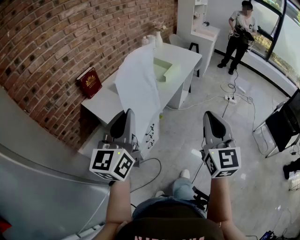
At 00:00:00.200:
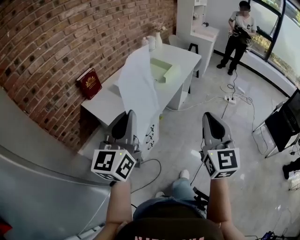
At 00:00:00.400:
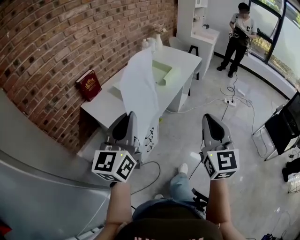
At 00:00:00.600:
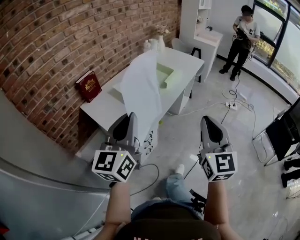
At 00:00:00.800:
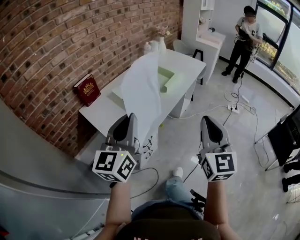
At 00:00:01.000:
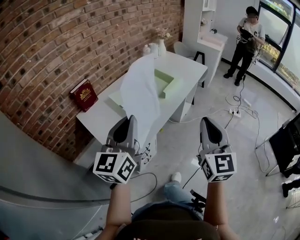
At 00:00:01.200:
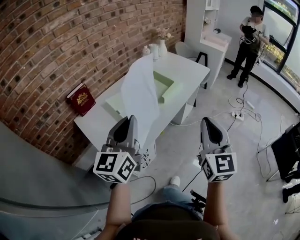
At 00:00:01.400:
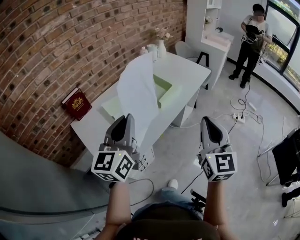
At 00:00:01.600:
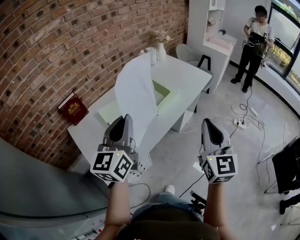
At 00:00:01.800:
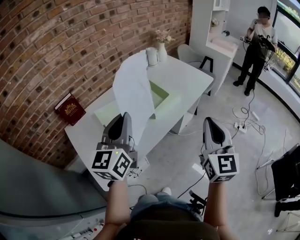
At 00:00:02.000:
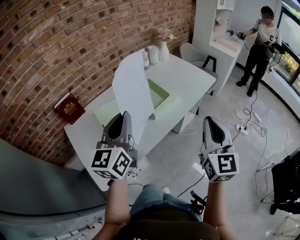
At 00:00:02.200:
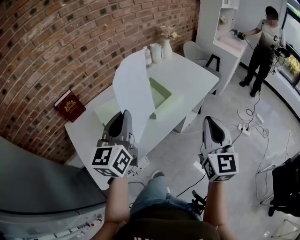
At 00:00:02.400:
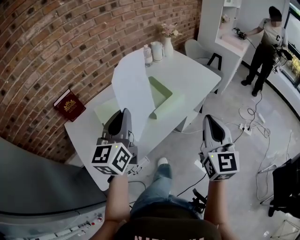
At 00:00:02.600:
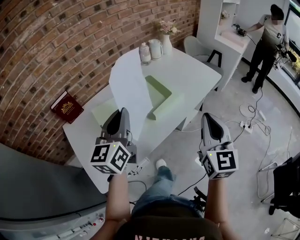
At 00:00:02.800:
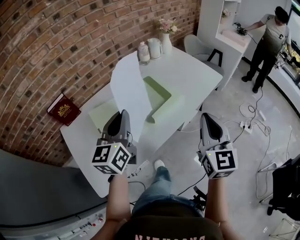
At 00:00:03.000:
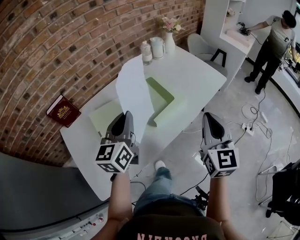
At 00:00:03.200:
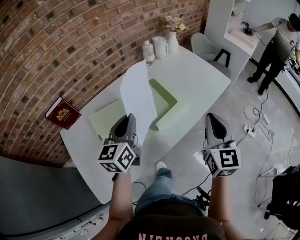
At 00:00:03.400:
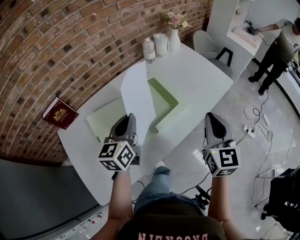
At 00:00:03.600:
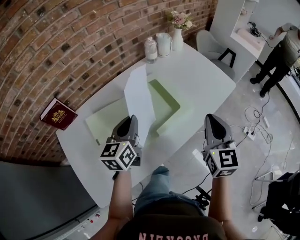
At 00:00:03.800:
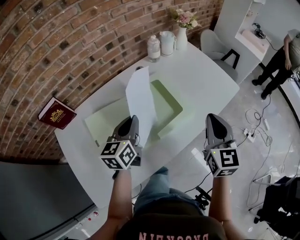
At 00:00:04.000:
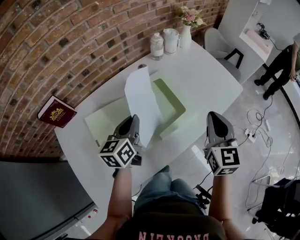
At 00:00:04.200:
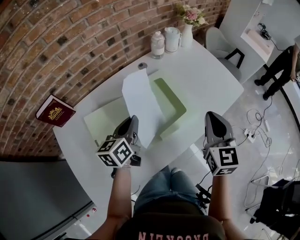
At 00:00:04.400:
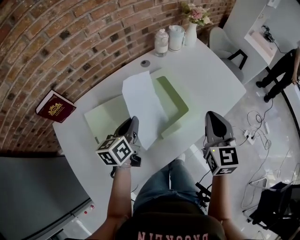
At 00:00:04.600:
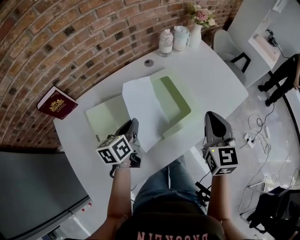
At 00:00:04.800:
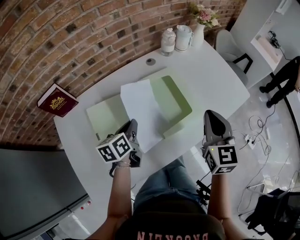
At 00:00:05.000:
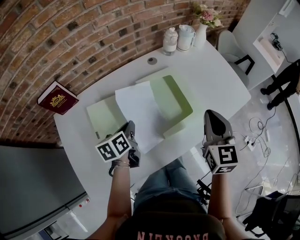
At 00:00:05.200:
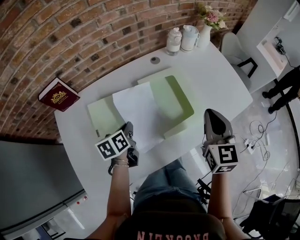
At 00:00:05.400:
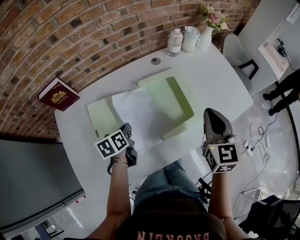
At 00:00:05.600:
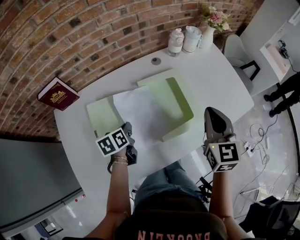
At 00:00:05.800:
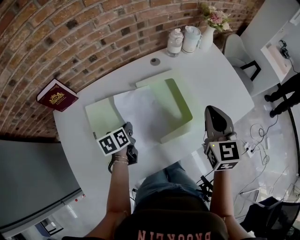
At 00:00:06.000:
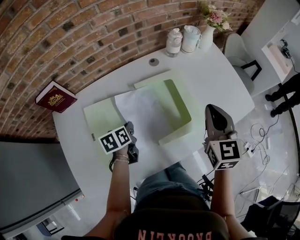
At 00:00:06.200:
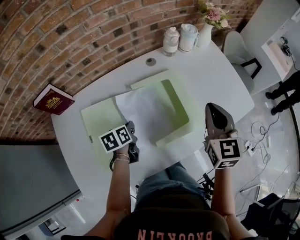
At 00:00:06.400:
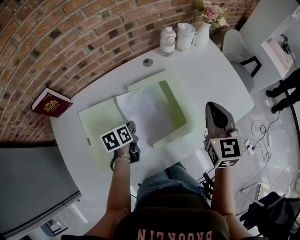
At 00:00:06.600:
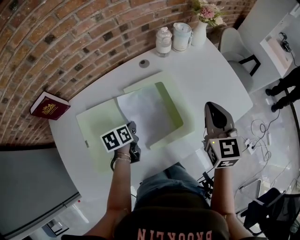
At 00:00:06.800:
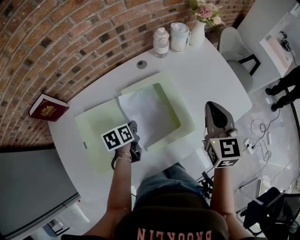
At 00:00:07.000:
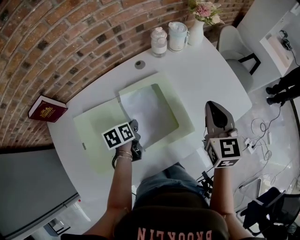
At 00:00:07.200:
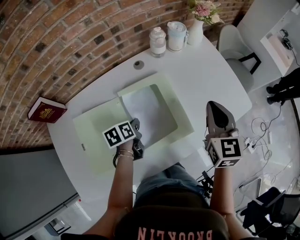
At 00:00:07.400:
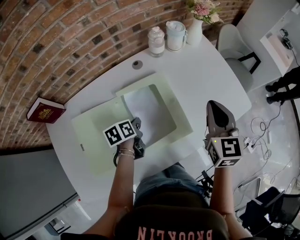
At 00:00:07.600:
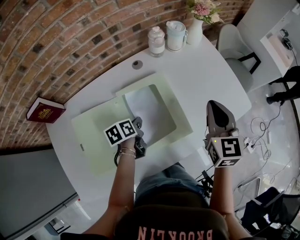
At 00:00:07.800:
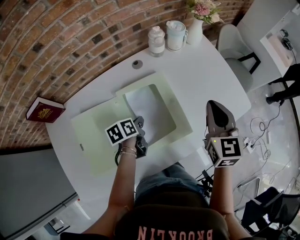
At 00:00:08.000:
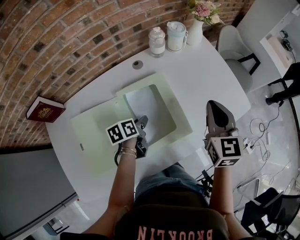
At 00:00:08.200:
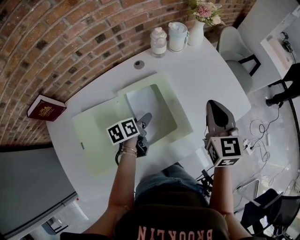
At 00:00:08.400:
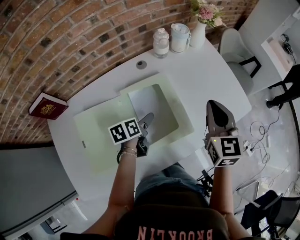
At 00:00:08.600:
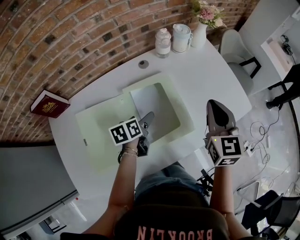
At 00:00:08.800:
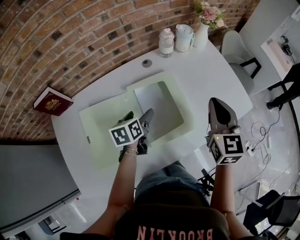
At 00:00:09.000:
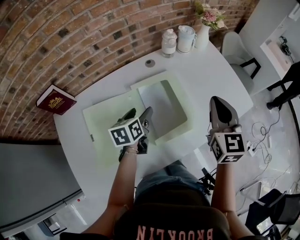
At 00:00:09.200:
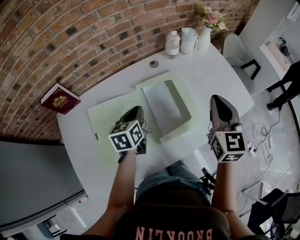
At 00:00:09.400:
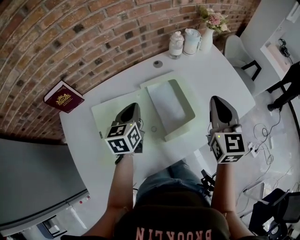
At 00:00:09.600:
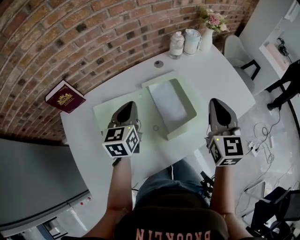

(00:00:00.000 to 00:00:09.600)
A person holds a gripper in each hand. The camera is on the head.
00:00:00.000 - 00:00:01.600: The grippers both shift forward by approximately 30 cm.
00:00:01.600 - 00:00:03.200: The right gripper travels forward by approximately 25 cm; the left gripper goes some 25 cm forward and downward.
00:00:03.200 - 00:00:04.800: The left gripper heads downward and forward, covering about 15 cm, and turns by roughly 40 degrees, while the right gripper moves forward, to the left and downward, approximately 15 cm.
00:00:04.800 - 00:00:06.400: The left gripper moves downward, some 10 cm, and changes its angle by about 20 degrees, while the right gripper shifts some 10 cm forward.
00:00:06.400 - 00:00:08.000: The right gripper shifts by approximately 5 cm. The left gripper shifts approximately 10 cm to the right and forward.
00:00:08.000 - 00:00:09.600: The left gripper moves upward and to the left, roughly 20 cm, changes its angle by roughly 50 degrees, and opens, then closes again. The right gripper travels backward, to the left and upward by approximately 15 cm.

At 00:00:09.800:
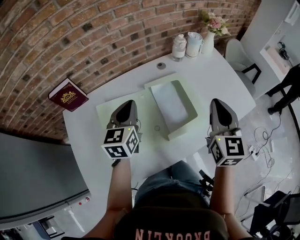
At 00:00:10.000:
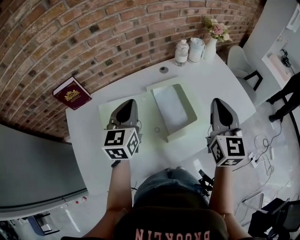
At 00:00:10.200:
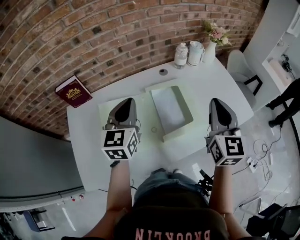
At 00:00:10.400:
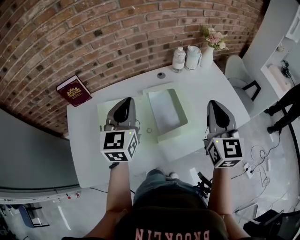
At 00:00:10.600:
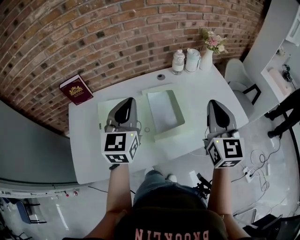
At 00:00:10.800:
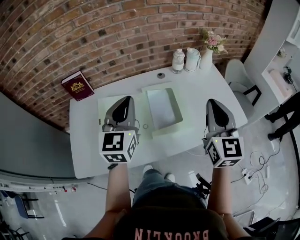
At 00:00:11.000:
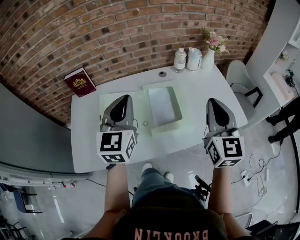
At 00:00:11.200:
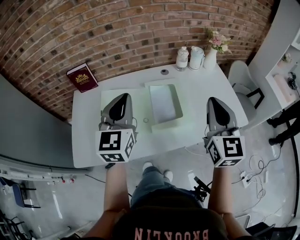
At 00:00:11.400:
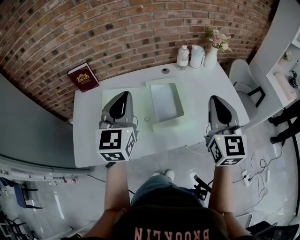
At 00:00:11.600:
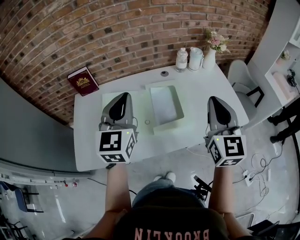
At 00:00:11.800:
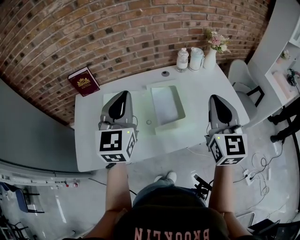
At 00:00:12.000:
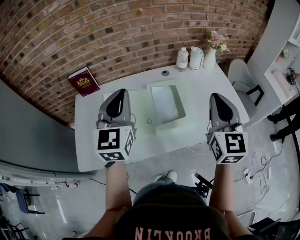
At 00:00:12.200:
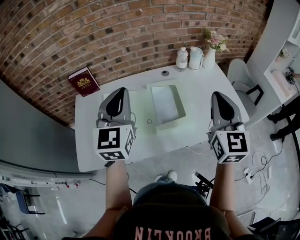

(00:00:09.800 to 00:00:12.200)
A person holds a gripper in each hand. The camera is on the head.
00:00:09.800 - 00:00:11.000: The right gripper heads upward and to the right, covering roughly 10 cm; the left gripper goes some 20 cm upward, backward and to the right, and swivels approximately 20 degrees.
00:00:11.000 - 00:00:12.200: The grippers stay close to where they were, moving slightly.

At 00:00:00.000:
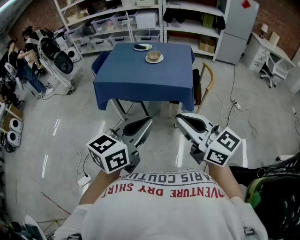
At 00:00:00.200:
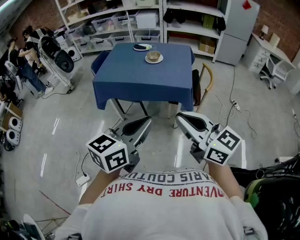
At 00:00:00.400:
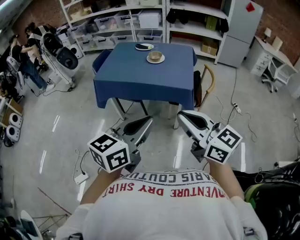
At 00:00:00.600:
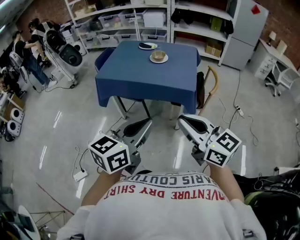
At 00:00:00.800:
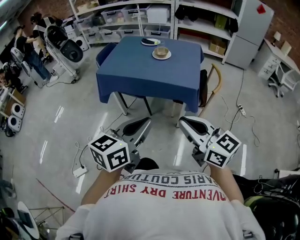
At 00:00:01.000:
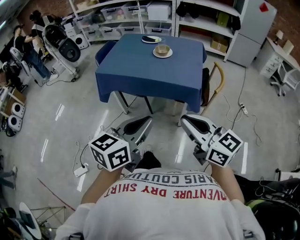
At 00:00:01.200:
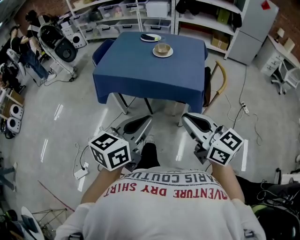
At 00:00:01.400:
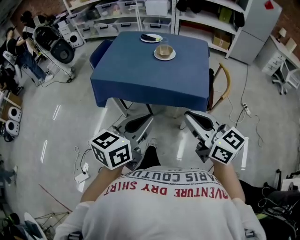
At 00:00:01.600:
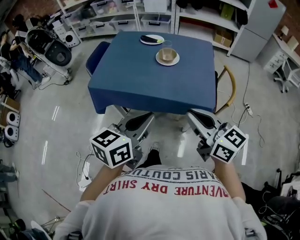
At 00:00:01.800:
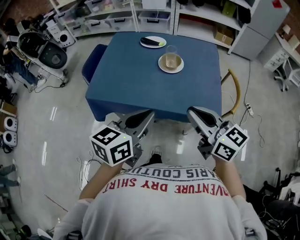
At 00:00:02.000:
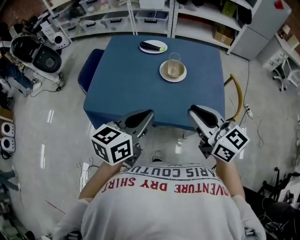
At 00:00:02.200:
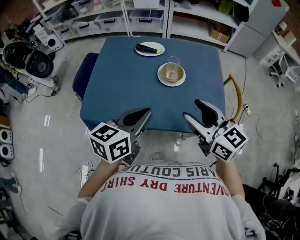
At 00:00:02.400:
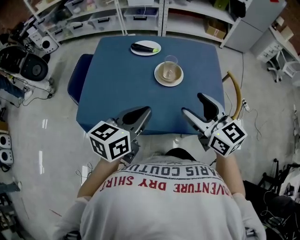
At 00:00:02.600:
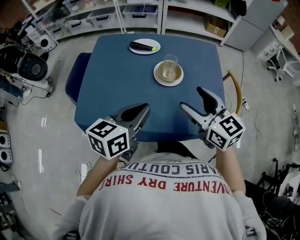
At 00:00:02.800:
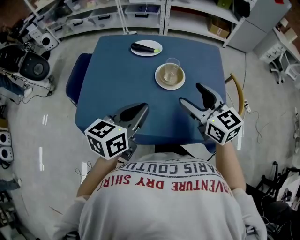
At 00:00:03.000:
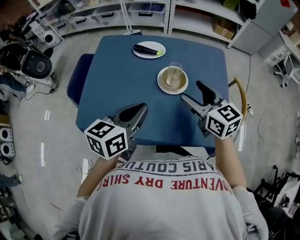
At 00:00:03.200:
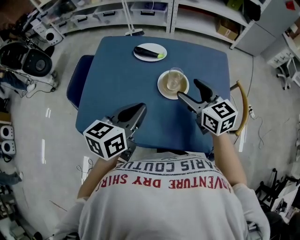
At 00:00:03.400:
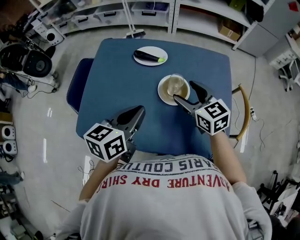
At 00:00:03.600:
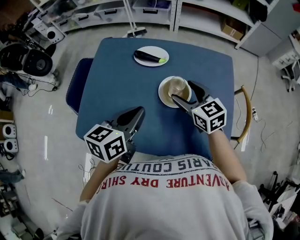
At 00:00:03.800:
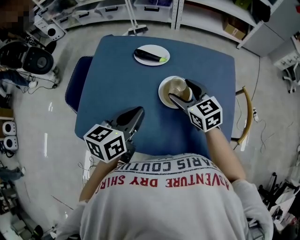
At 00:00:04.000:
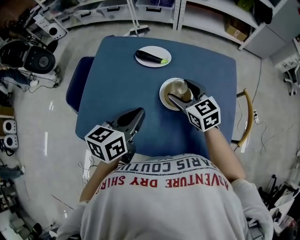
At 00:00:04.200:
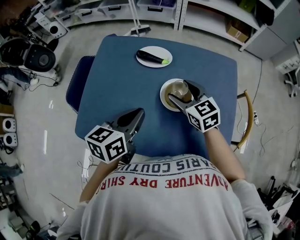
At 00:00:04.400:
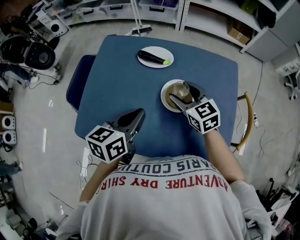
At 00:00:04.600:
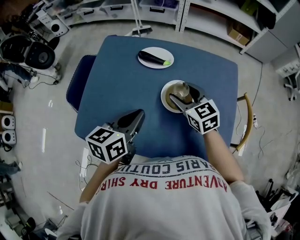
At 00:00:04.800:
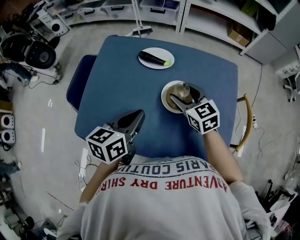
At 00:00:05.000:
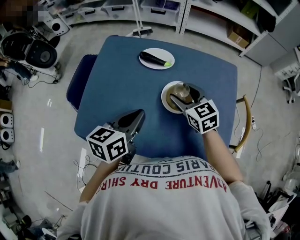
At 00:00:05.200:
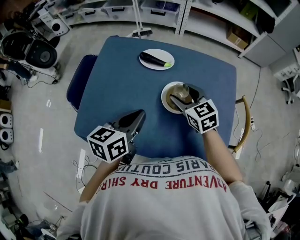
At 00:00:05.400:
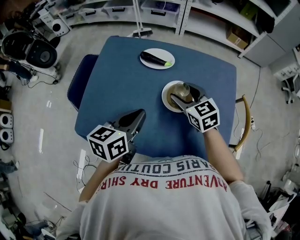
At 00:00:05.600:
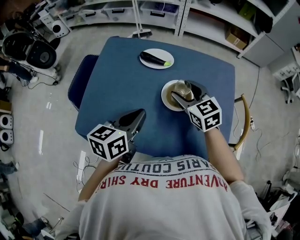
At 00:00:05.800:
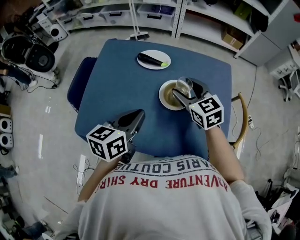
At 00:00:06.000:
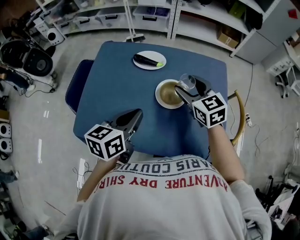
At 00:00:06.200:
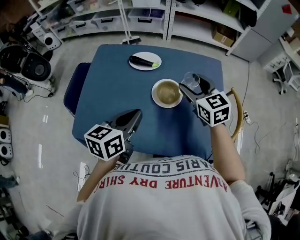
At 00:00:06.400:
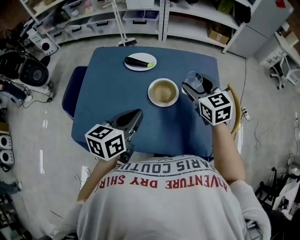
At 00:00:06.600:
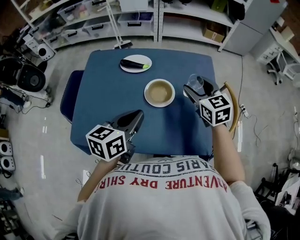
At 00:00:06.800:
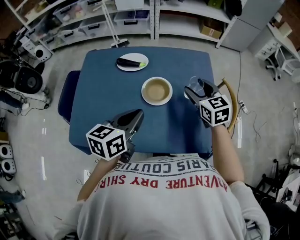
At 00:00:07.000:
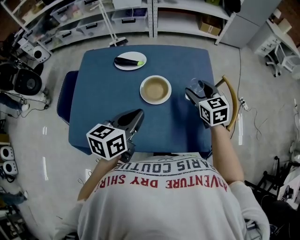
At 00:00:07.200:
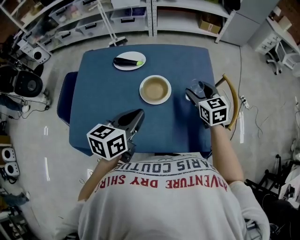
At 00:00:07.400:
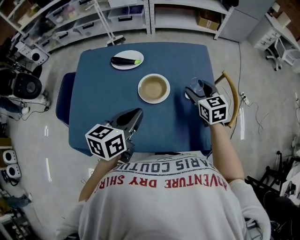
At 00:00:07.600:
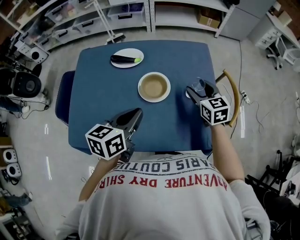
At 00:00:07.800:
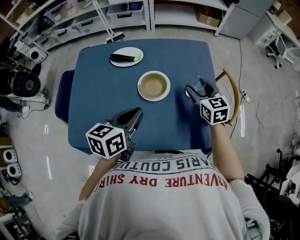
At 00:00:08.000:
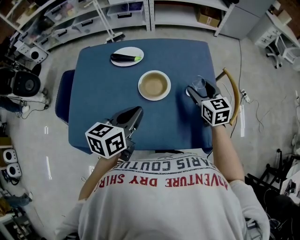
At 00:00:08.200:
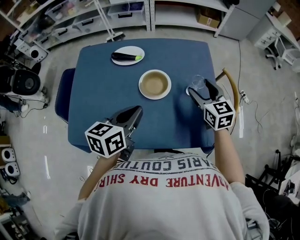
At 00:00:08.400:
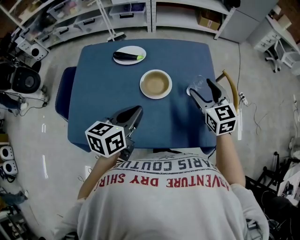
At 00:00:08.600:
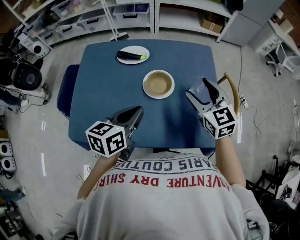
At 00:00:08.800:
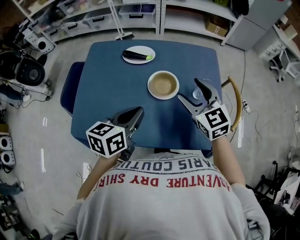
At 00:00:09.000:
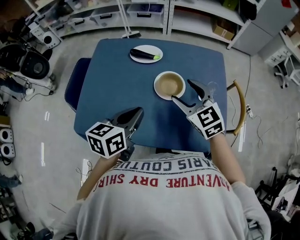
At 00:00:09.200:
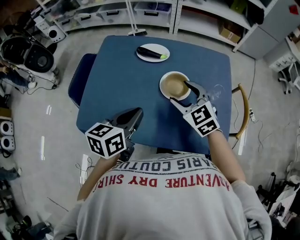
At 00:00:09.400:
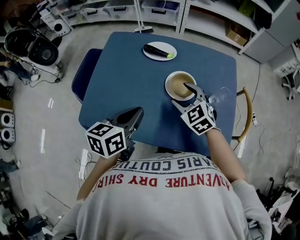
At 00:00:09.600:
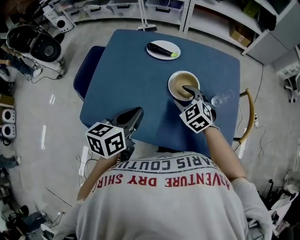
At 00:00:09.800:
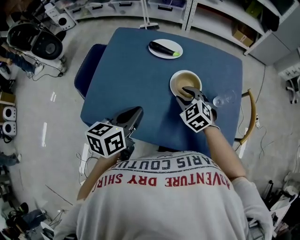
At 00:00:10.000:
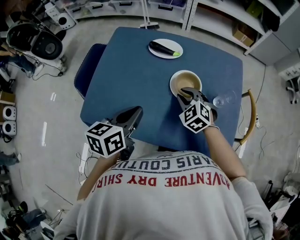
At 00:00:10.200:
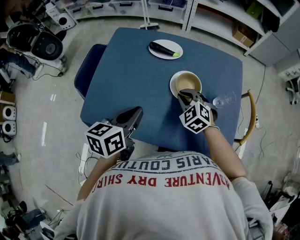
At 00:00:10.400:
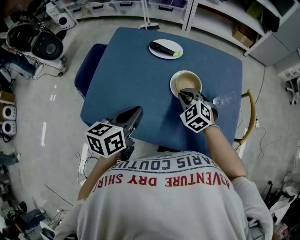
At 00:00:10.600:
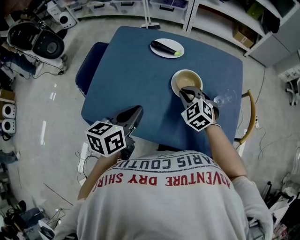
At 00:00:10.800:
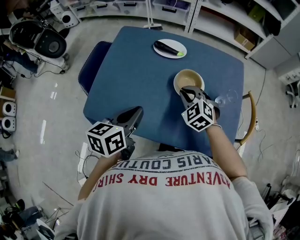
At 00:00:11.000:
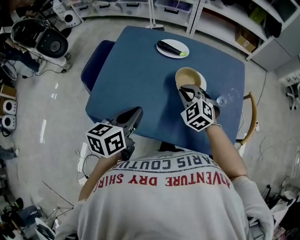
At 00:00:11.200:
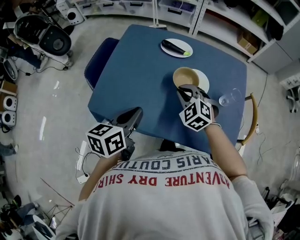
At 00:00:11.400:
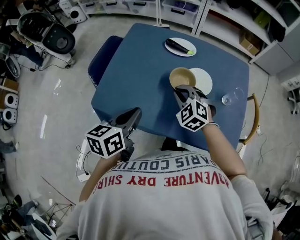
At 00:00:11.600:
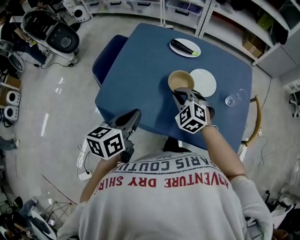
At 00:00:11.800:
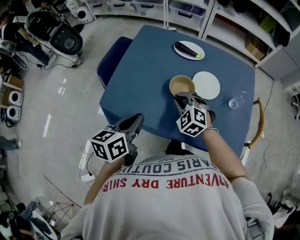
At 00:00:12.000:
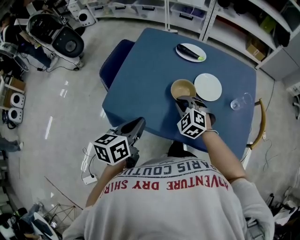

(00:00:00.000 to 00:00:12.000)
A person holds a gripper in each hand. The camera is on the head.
00:00:00.000 - 00:00:01.600: Both grippers move forward, about 25 cm.
00:00:01.600 - 00:00:03.000: The two grippers go roughly 30 cm forward. The right gripper opens.
00:00:03.000 - 00:00:04.400: The left gripper goes approximately 5 cm forward. Meanwhile the right gripper heads forward and downward, covering approximately 15 cm.
00:00:04.400 - 00:00:06.000: The right gripper is displaced upward by roughly 5 cm.
00:00:06.000 - 00:00:07.600: The left gripper travels to the right by roughly 5 cm; the right gripper goes approximately 15 cm to the right and downward, and changes its angle by about 20 degrees.
00:00:07.600 - 00:00:09.000: The left gripper moves roughly 5 cm. The right gripper is displaced to the left, upward and backward by approximately 15 cm, and changes its angle by roughly 30 degrees.
00:00:09.000 - 00:00:10.400: The right gripper goes about 15 cm downward and to the left, swivels about 30 degrees, and closes up; the left gripper shifts roughly 5 cm to the left.
00:00:10.400 - 00:00:12.000: The two grippers go about 15 cm to the left and backward.
